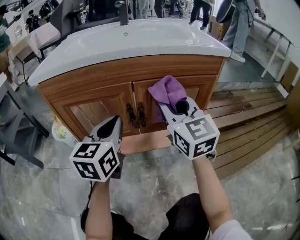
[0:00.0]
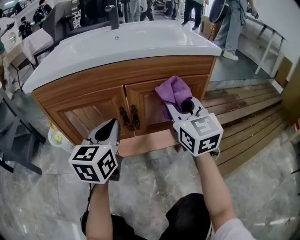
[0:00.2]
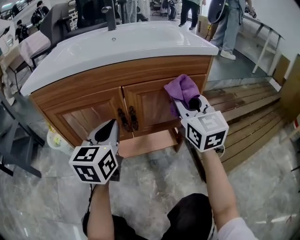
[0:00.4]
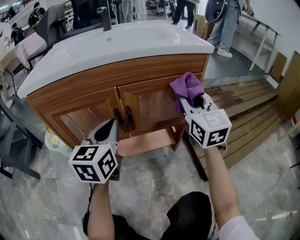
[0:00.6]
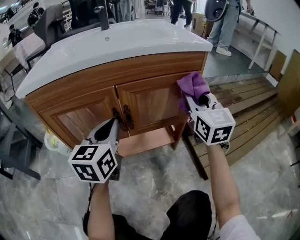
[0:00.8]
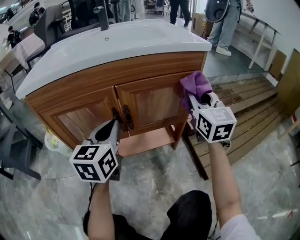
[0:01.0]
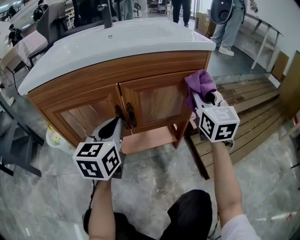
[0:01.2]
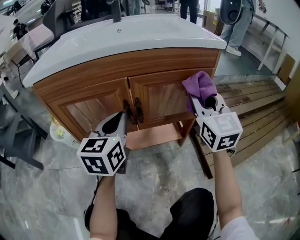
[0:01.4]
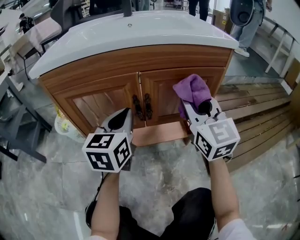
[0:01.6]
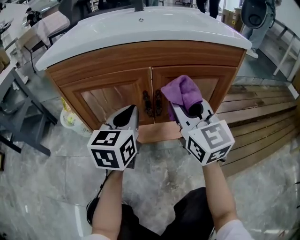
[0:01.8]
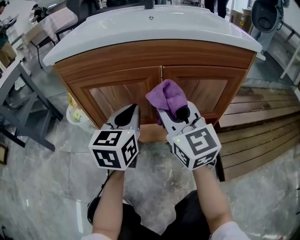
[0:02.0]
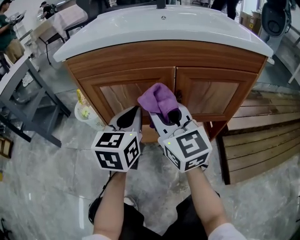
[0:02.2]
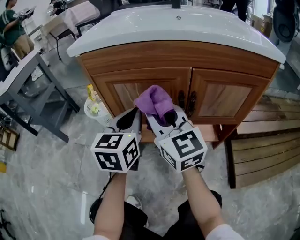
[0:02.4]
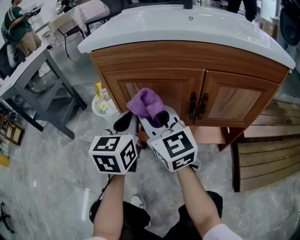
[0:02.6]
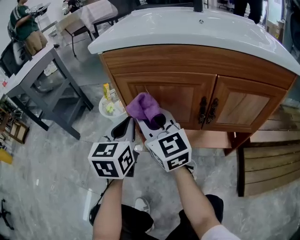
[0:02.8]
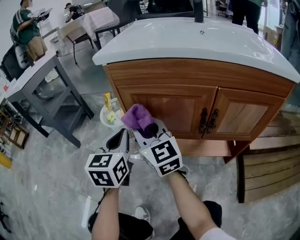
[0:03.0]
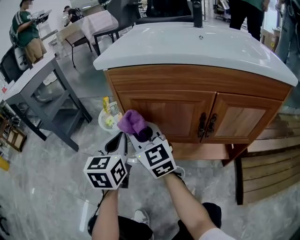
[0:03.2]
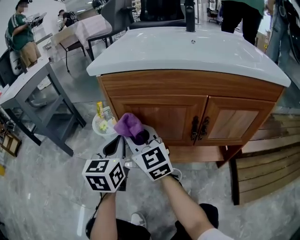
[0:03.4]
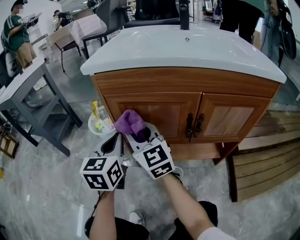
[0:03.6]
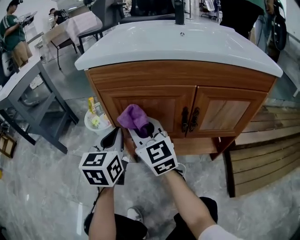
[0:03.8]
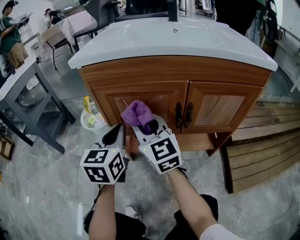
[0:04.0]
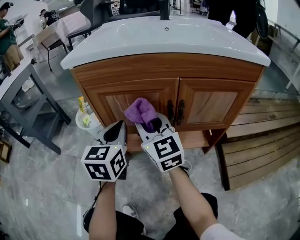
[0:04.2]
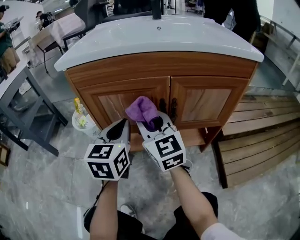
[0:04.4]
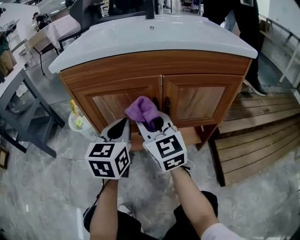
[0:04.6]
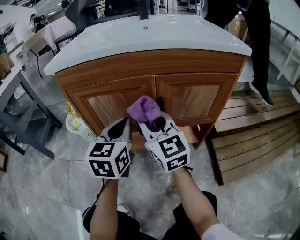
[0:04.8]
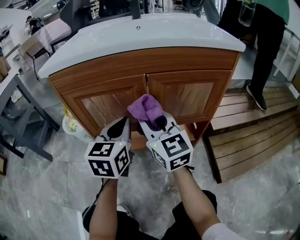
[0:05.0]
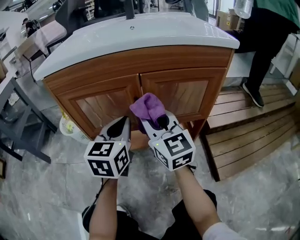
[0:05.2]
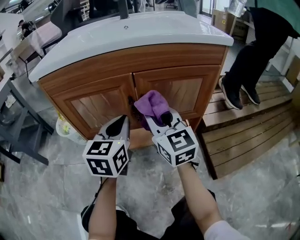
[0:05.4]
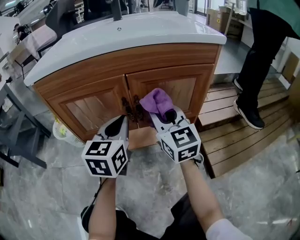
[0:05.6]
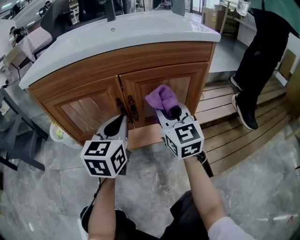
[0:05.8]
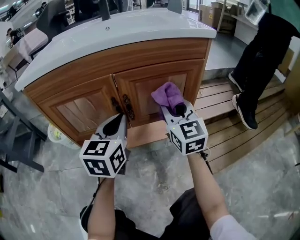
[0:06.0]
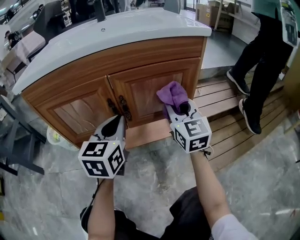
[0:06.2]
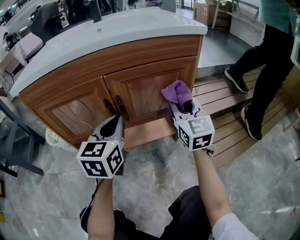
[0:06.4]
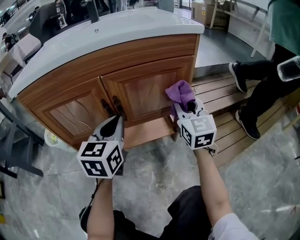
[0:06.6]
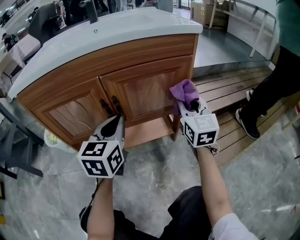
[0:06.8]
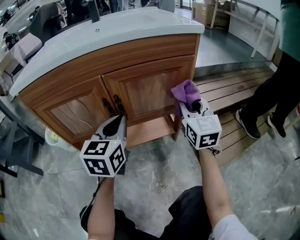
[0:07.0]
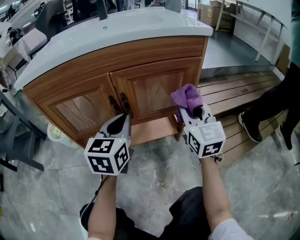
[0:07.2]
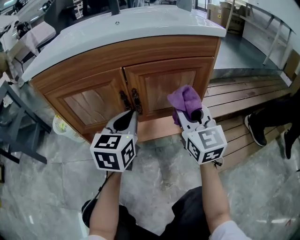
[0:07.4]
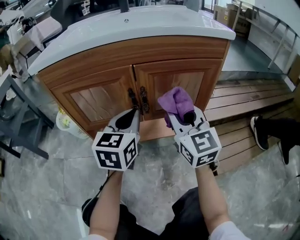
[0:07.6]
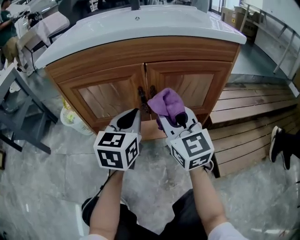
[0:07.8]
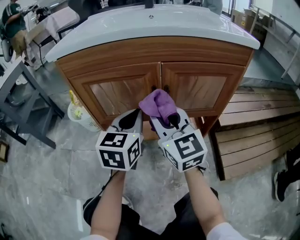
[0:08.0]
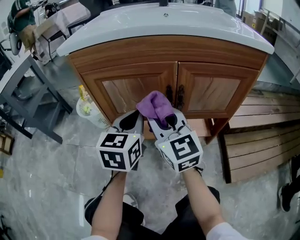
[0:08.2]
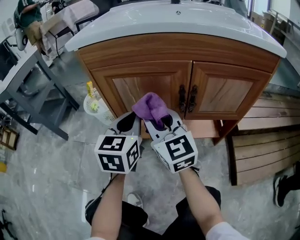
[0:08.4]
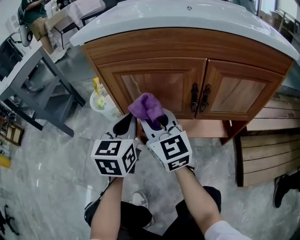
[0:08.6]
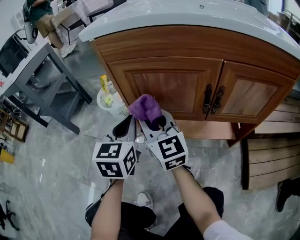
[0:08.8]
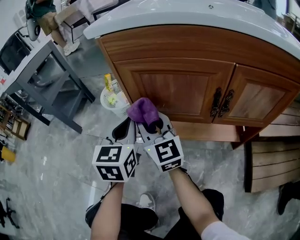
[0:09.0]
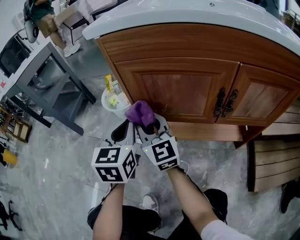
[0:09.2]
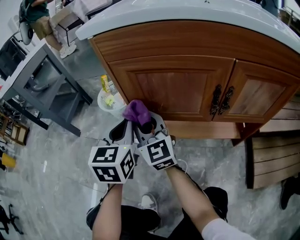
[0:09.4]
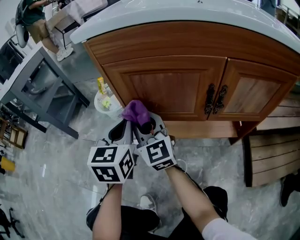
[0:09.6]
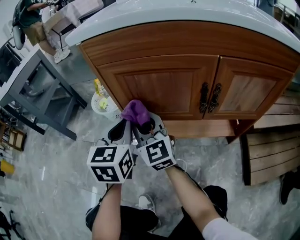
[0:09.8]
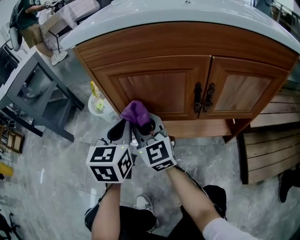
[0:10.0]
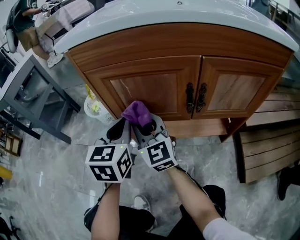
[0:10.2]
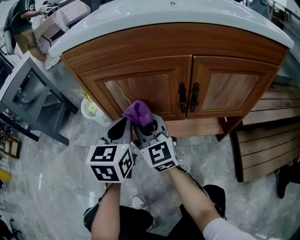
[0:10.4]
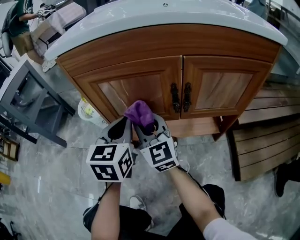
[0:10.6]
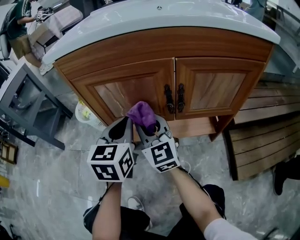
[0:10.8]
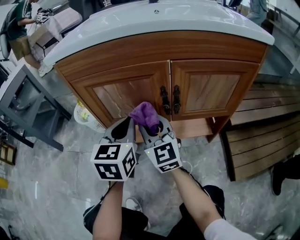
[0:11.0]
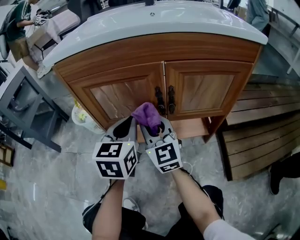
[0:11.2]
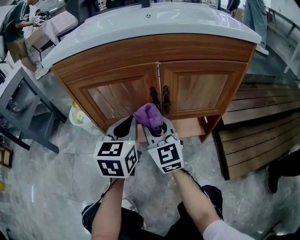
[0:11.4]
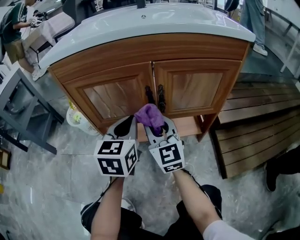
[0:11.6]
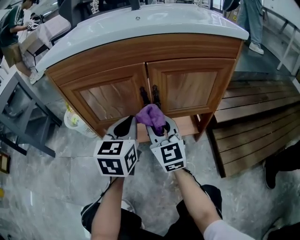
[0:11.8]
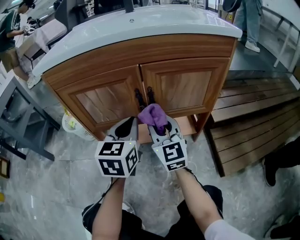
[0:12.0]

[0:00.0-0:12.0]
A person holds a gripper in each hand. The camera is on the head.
0:00.0 to 0:01.6: The right gripper reaches roughly 15 cm to the right, then returns.
0:01.6 to 0:03.0: The right gripper ends up approximately 35 cm from where it was, and changes its angle by some 40 degrees. The left gripper ends up approximately 25 cm from where it was, and turns by some 30 degrees.
0:03.0 to 0:04.4: Both grippers travel together to the right, about 15 cm.
0:04.4 to 0:06.0: The right gripper is displaced to the right by about 25 cm, and changes its angle by some 20 degrees. The left gripper is displaced to the right by some 15 cm.
0:06.0 to 0:07.6: The right gripper heads backward, covering approximately 5 cm, and moves about 10 cm to the right and comes back.
0:07.6 to 0:09.0: The left gripper shifts by about 25 cm, and turns by about 30 degrees. Meanwhile the right gripper ends up roughly 35 cm from where it was, and rotates about 30 degrees.
0:09.0 to 0:10.4: The two grippers go about 10 cm to the right.
0:10.4 to 0:12.0: The grippers both shift to the right by some 15 cm.

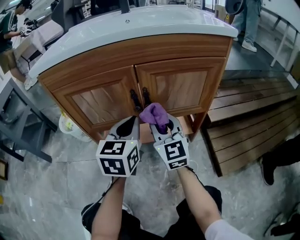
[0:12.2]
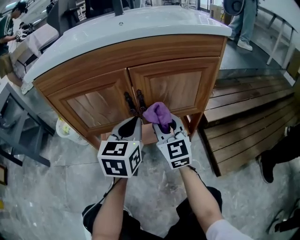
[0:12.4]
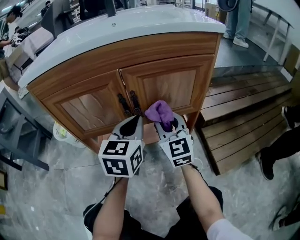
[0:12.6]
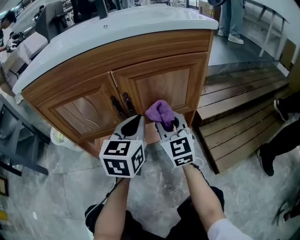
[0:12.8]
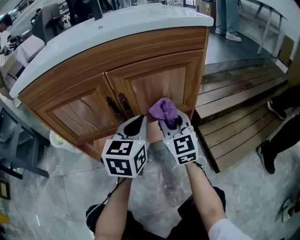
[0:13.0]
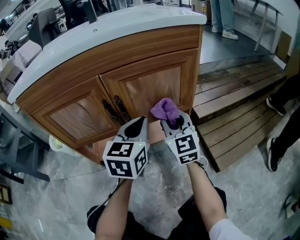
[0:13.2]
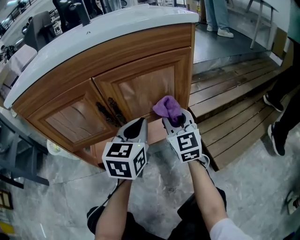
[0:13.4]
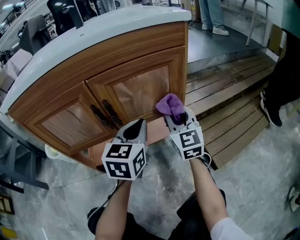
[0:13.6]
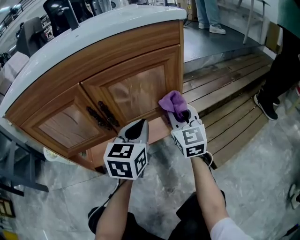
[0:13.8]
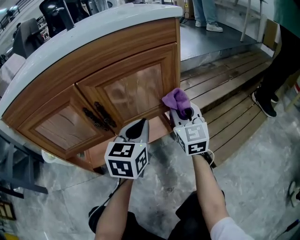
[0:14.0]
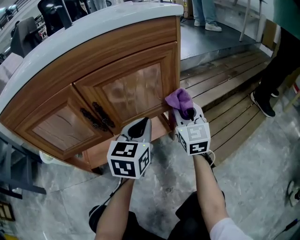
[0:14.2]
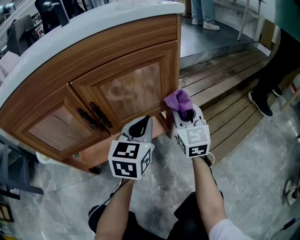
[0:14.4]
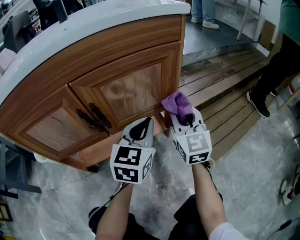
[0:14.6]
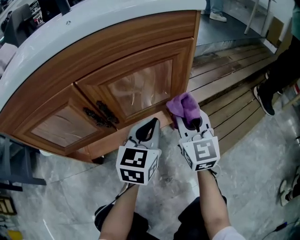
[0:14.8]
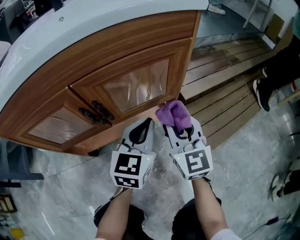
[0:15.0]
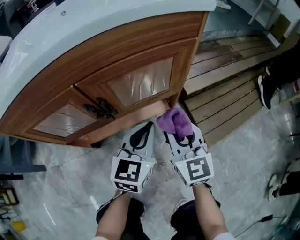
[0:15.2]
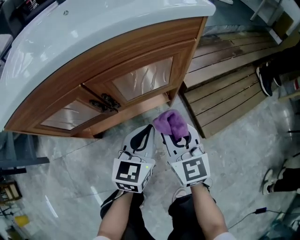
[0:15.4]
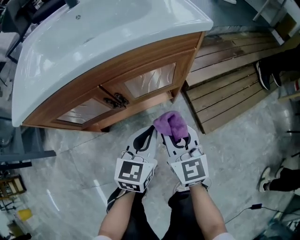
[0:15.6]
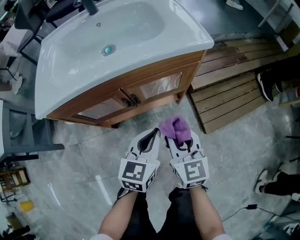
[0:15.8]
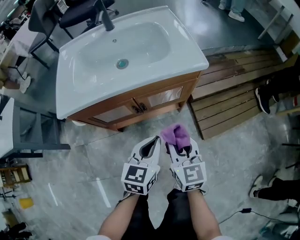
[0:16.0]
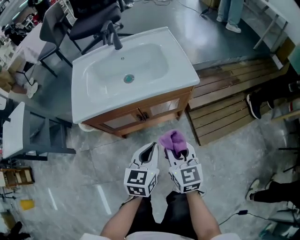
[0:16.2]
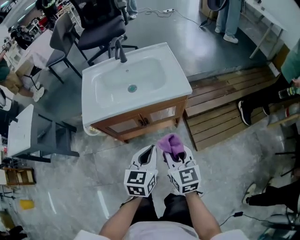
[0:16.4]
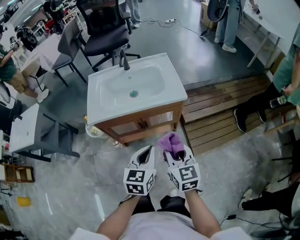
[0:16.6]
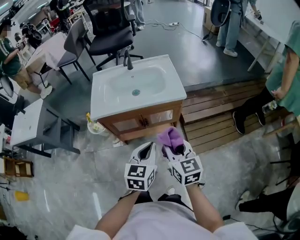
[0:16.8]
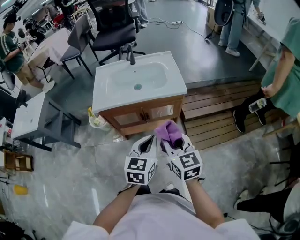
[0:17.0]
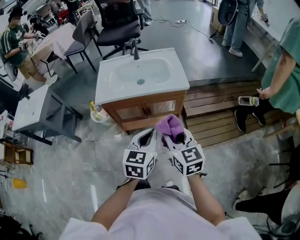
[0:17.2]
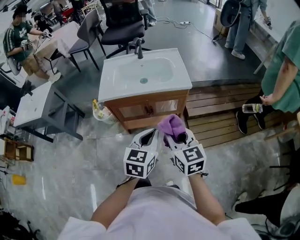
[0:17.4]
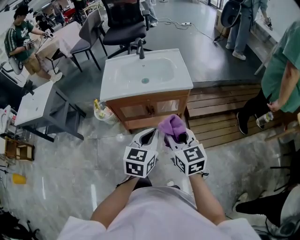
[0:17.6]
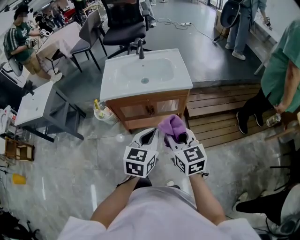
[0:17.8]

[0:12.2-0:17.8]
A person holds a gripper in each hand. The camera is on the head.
0:12.2 to 0:13.6: The grippers both shift to the right by approximately 15 cm.
0:13.6 to 0:15.0: The right gripper is displaced backward by approximately 5 cm.
0:15.0 to 0:16.4: Both grippers travel together upward and backward, approximately 40 cm. The right gripper swivels some 20 degrees.
0:16.4 to 0:17.8: Both grippers move upward and backward, some 15 cm.

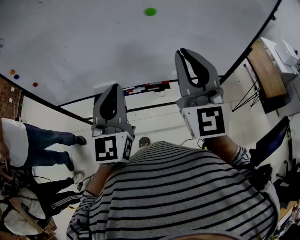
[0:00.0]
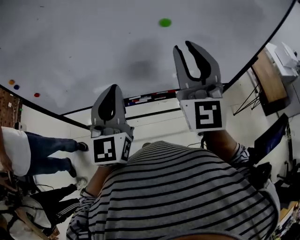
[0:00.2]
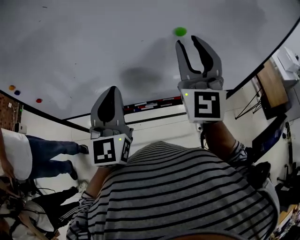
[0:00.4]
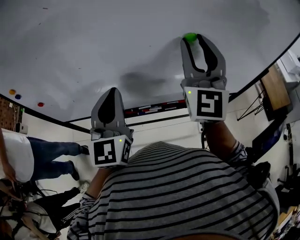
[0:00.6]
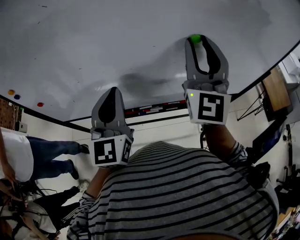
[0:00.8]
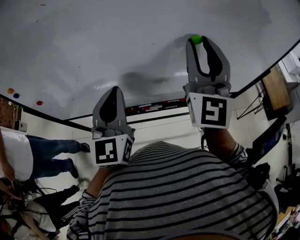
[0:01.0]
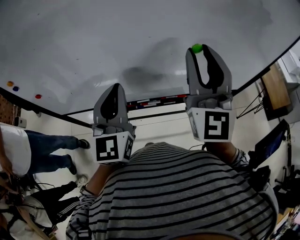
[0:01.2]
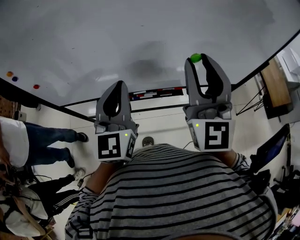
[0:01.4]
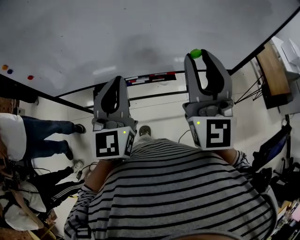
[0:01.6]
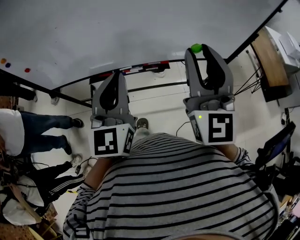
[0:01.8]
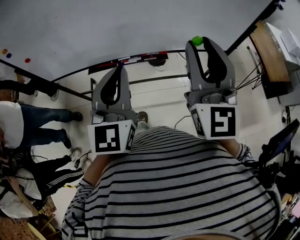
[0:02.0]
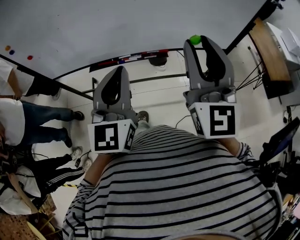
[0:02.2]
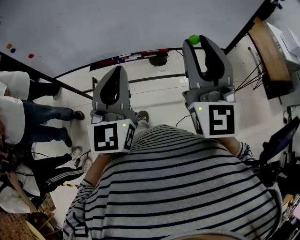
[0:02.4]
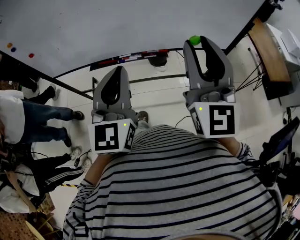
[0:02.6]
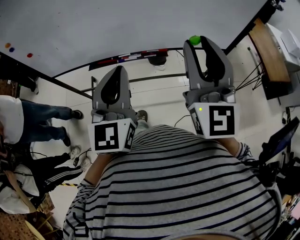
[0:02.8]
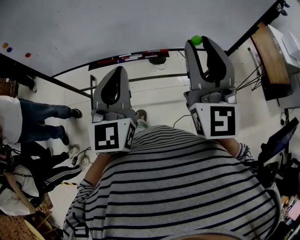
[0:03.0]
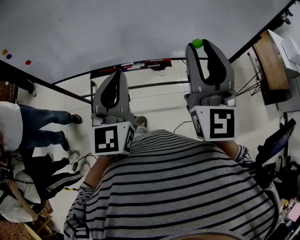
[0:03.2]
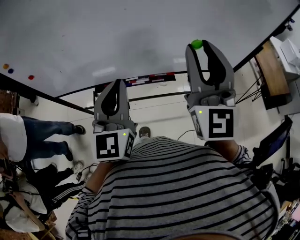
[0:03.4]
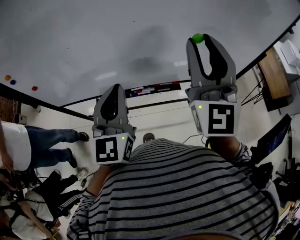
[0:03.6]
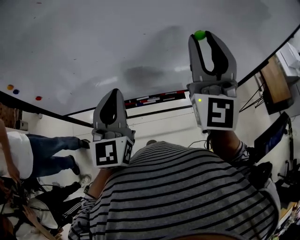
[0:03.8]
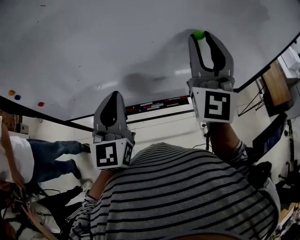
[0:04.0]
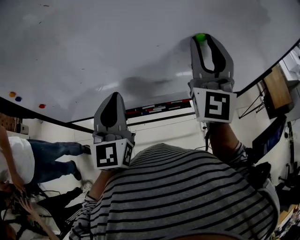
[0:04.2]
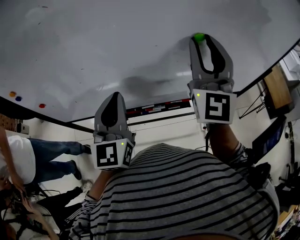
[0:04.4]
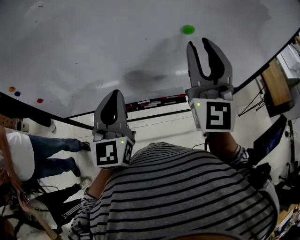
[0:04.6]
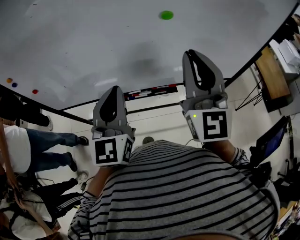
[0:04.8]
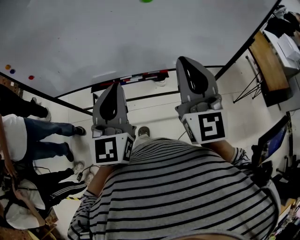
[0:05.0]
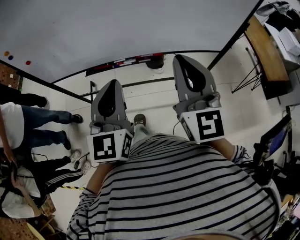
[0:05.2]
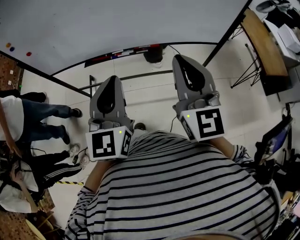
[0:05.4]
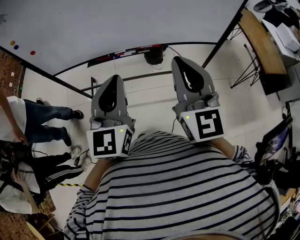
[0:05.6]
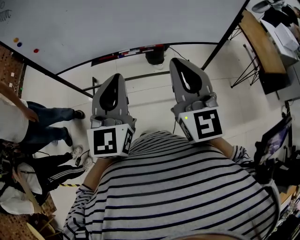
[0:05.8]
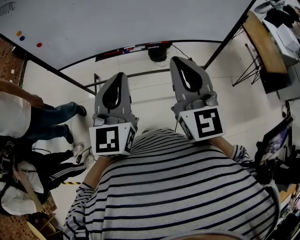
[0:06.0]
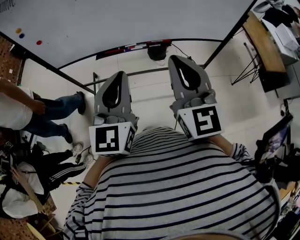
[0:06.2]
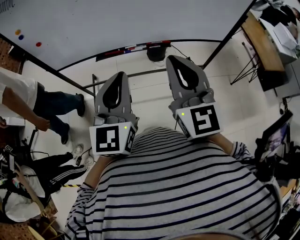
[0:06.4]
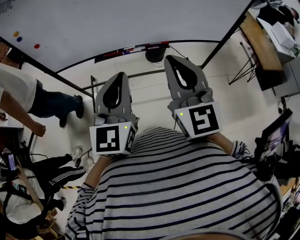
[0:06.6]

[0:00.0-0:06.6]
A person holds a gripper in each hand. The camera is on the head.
0:00.0 to 0:01.6: The right gripper moves about 15 cm downward and comes back, and opens.
0:03.2 to 0:05.0: The right gripper goes downward and returns, some 15 cm each way, and closes its fingers.
0:05.0 to 0:06.6: The right gripper moves upward, approximately 15 cm.
